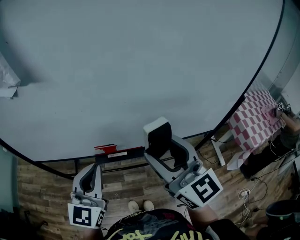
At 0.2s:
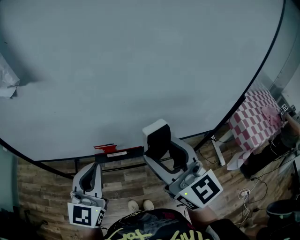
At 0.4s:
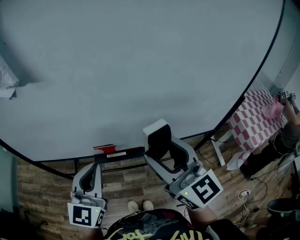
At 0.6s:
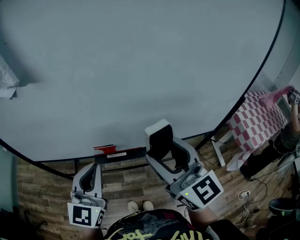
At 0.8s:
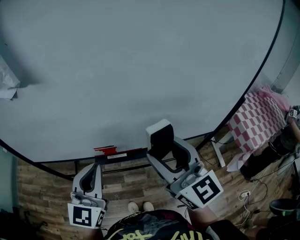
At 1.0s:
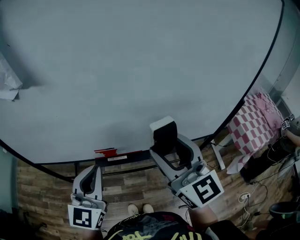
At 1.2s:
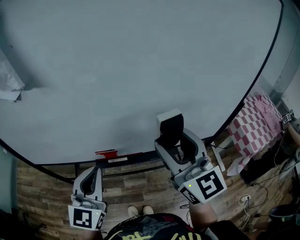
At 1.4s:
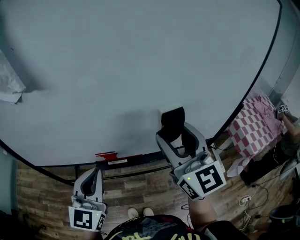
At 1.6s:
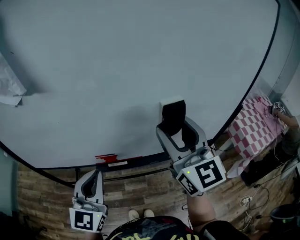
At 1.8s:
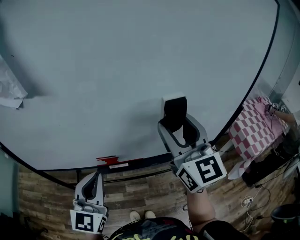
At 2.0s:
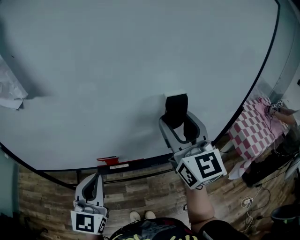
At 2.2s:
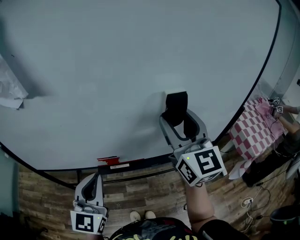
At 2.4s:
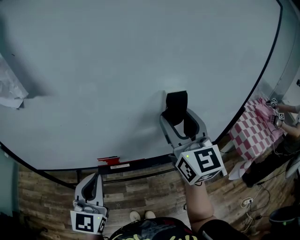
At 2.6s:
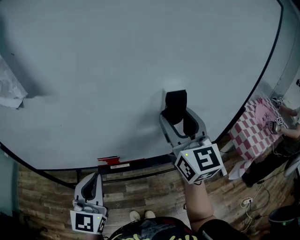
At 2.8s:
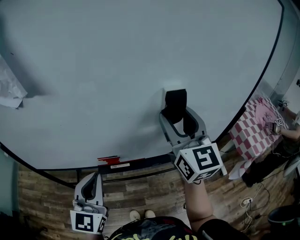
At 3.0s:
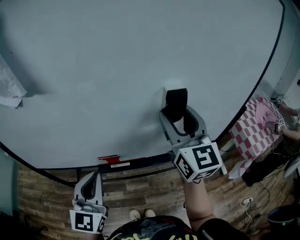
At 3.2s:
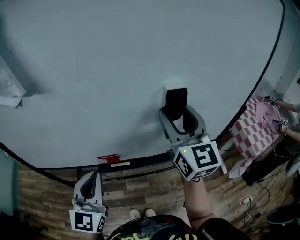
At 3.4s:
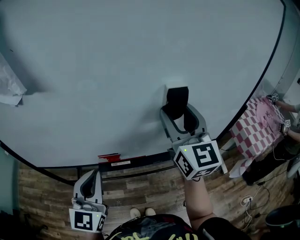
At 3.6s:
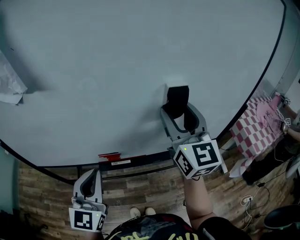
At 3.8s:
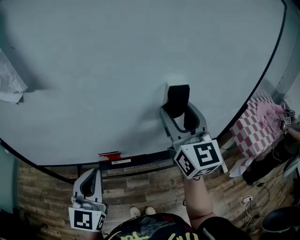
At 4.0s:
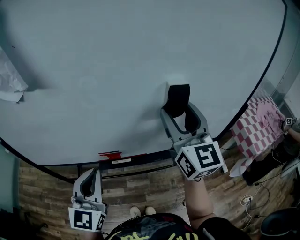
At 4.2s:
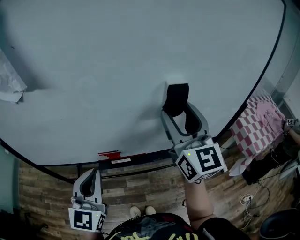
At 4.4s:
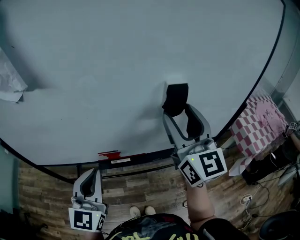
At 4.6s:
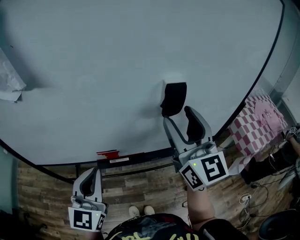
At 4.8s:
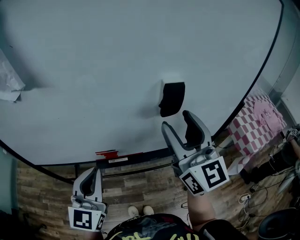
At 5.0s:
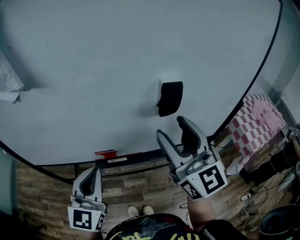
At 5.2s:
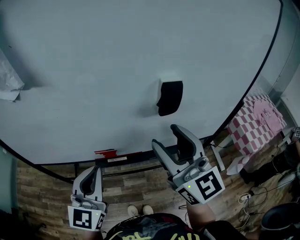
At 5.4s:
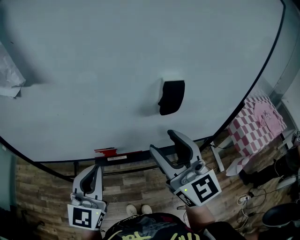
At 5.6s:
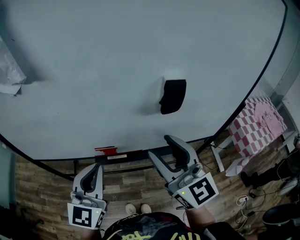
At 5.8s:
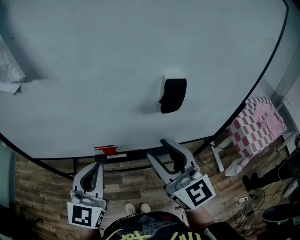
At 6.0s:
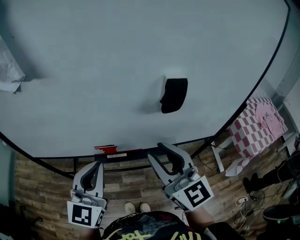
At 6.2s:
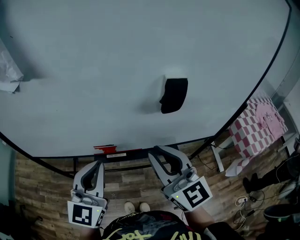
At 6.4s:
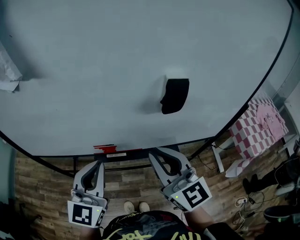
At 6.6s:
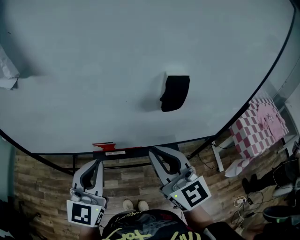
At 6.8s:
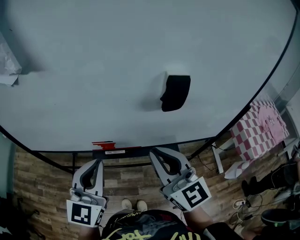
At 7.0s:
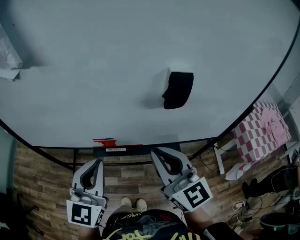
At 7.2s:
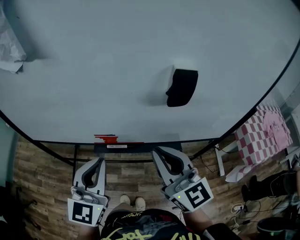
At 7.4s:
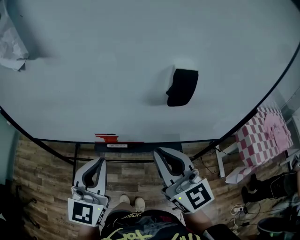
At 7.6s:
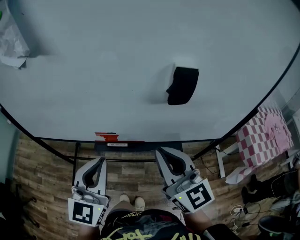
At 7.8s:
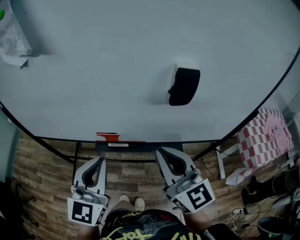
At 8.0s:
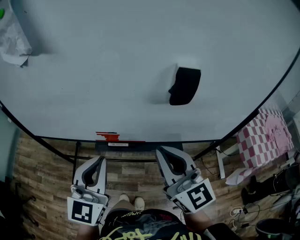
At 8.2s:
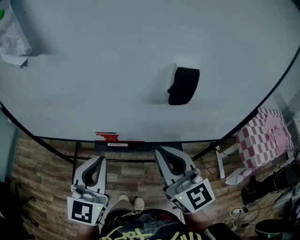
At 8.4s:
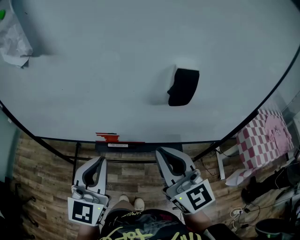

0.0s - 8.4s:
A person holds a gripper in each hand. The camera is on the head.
0.0s - 1.4s: The right gripper ends up roughly 5 cm from where it was.
1.4s - 2.8s: The right gripper is displaced forward by about 5 cm.
2.8s - 4.2s: The two grippers keep their place.
4.2s - 5.6s: The right gripper moves backward and downward, approximately 10 cm.
5.6s - 7.0s: The right gripper closes up.
7.0s - 8.4s: The grippers make only small movements.

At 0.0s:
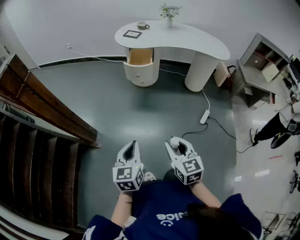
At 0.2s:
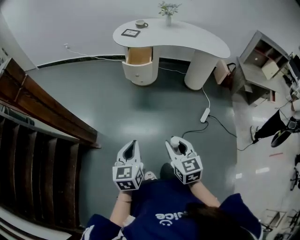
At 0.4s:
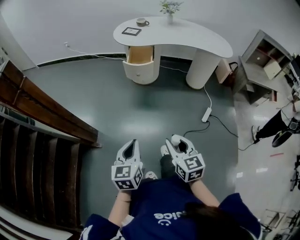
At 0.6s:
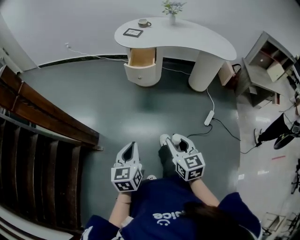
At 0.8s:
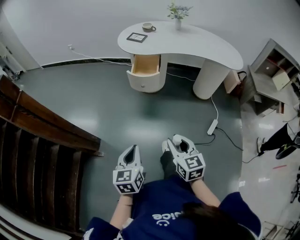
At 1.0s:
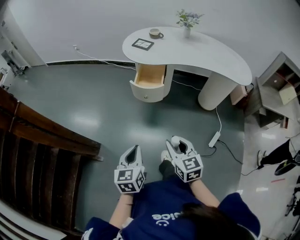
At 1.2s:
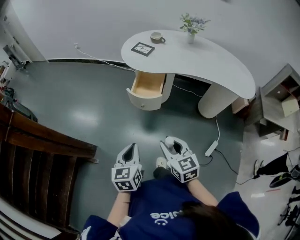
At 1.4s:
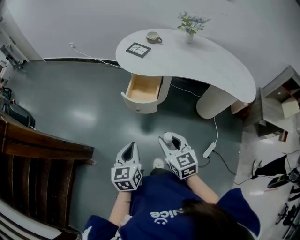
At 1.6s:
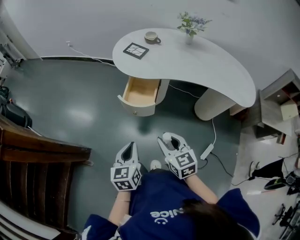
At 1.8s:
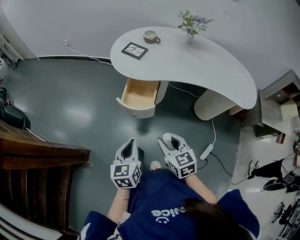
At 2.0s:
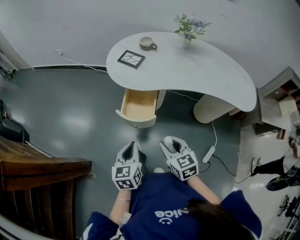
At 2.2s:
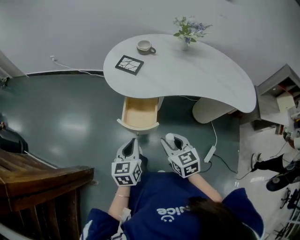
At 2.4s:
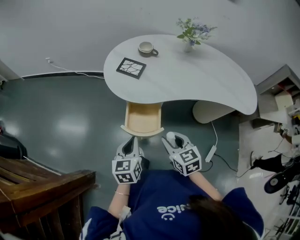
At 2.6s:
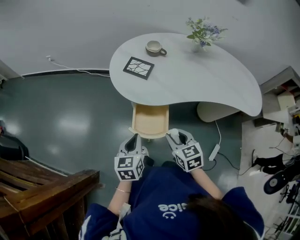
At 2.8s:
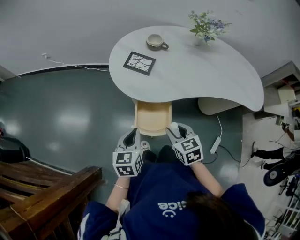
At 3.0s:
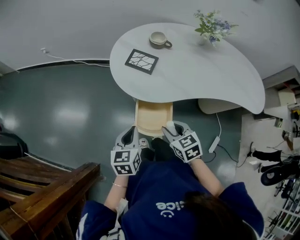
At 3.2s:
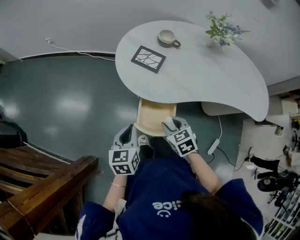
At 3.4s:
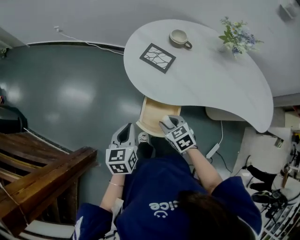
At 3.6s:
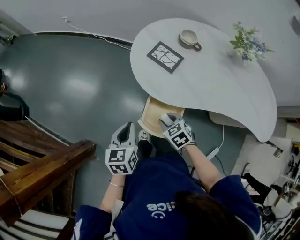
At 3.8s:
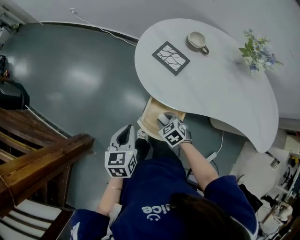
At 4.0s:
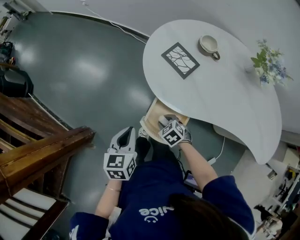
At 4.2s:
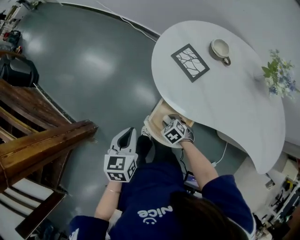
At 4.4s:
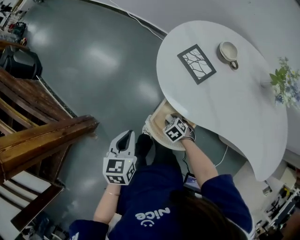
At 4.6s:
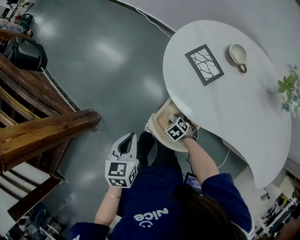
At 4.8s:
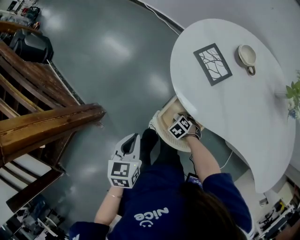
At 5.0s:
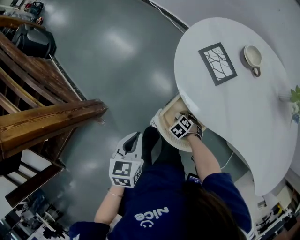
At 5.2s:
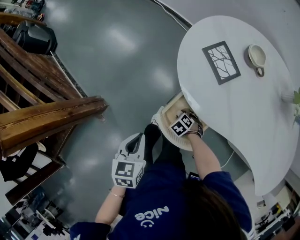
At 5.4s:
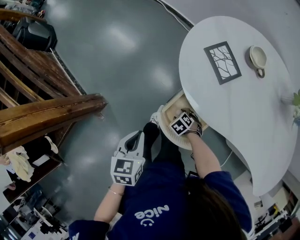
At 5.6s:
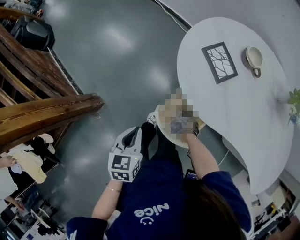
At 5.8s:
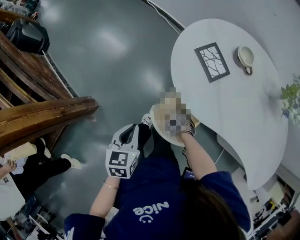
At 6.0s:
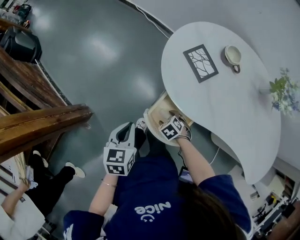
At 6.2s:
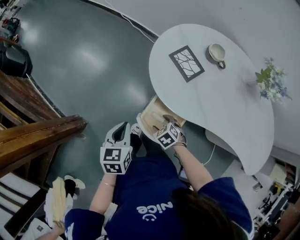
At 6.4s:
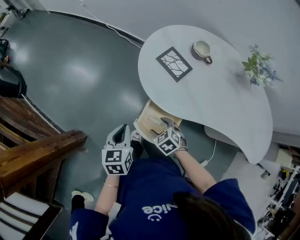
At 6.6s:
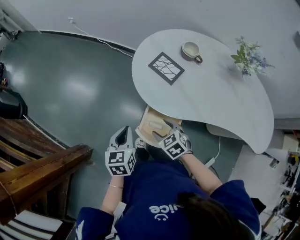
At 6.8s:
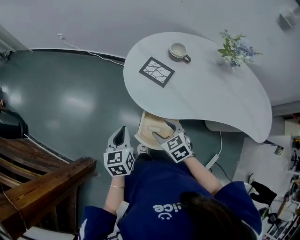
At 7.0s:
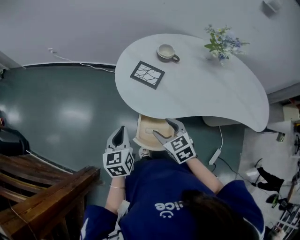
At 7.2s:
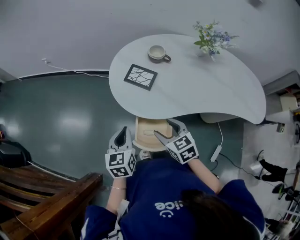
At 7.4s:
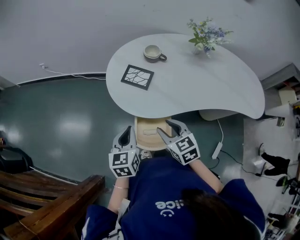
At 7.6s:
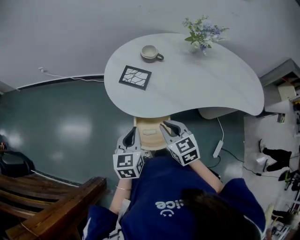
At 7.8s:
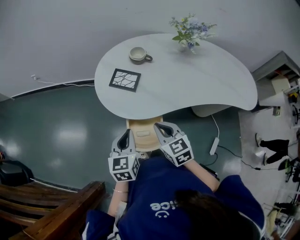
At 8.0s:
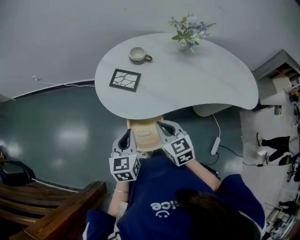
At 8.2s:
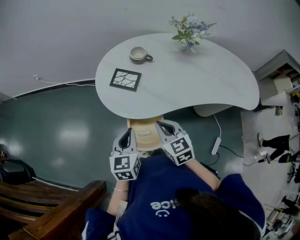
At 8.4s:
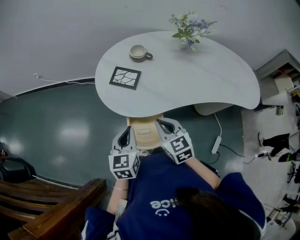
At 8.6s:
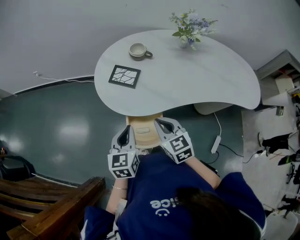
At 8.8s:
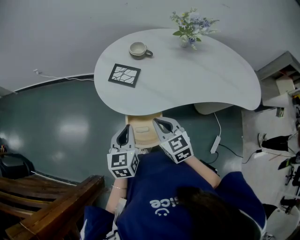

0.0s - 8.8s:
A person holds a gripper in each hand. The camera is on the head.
0.0s - 1.4s: Both grippers move forward, some 40 cm.
1.4s - 3.0s: Both grippers move forward, approximately 30 cm. The right gripper rotates approximately 20 degrees.
3.0s - 4.4s: The right gripper shifts about 25 cm downward, and swivels about 50 degrees. The left gripper shifts by approximately 5 cm, and rotates roughly 30 degrees.
4.4s - 5.8s: The right gripper opens up.
5.8s - 7.4s: The right gripper shifts some 30 cm upward, and points its fingers some 40 degrees further upward; the left gripper moves roughly 15 cm, and changes its angle by roughly 30 degrees.
7.4s - 8.8s: The left gripper moves to the right, approximately 5 cm, while the right gripper closes up.

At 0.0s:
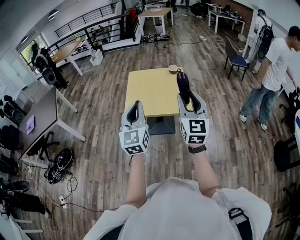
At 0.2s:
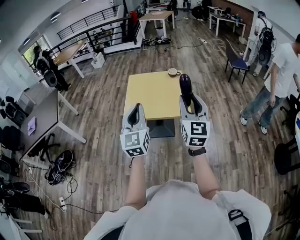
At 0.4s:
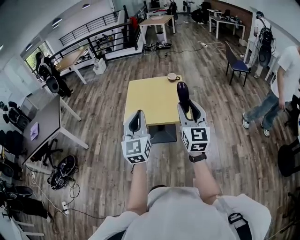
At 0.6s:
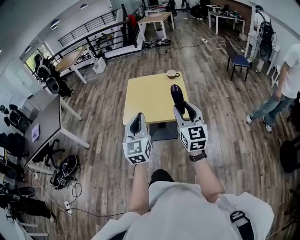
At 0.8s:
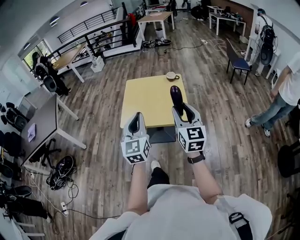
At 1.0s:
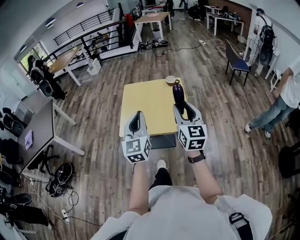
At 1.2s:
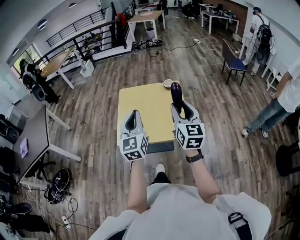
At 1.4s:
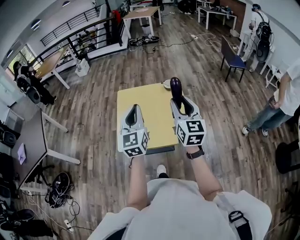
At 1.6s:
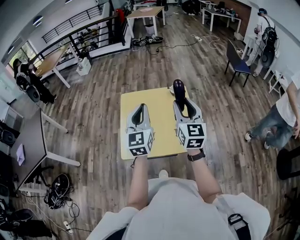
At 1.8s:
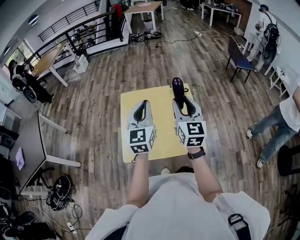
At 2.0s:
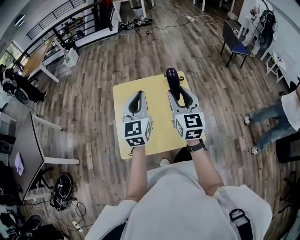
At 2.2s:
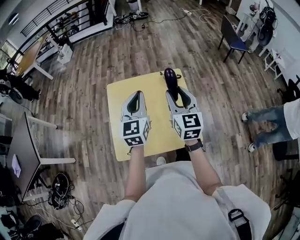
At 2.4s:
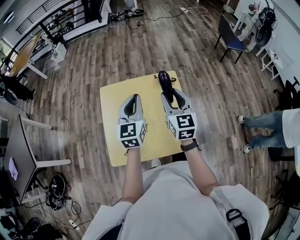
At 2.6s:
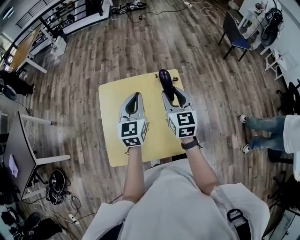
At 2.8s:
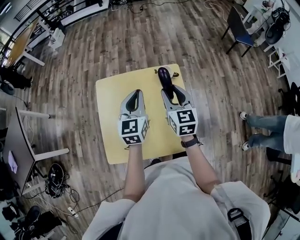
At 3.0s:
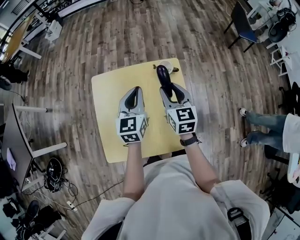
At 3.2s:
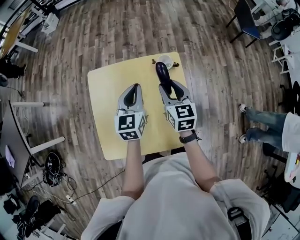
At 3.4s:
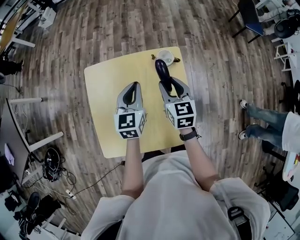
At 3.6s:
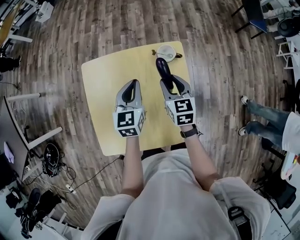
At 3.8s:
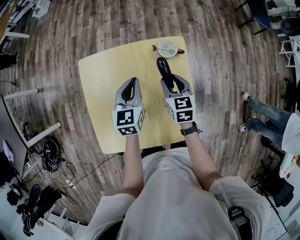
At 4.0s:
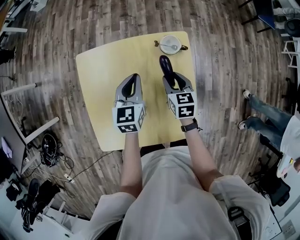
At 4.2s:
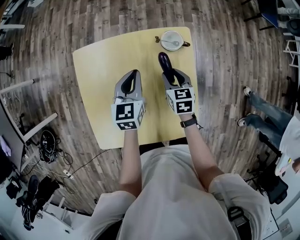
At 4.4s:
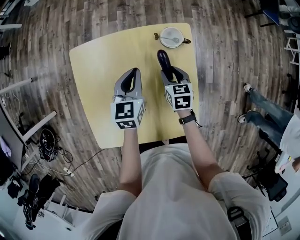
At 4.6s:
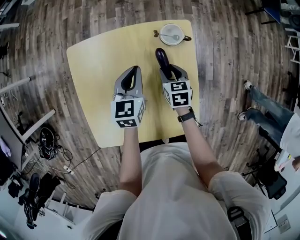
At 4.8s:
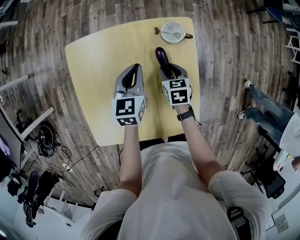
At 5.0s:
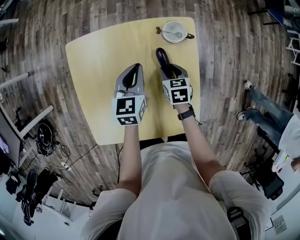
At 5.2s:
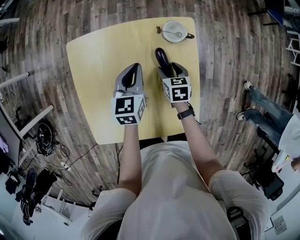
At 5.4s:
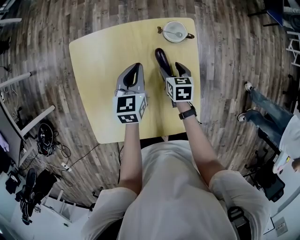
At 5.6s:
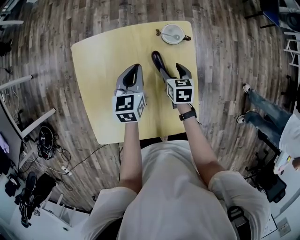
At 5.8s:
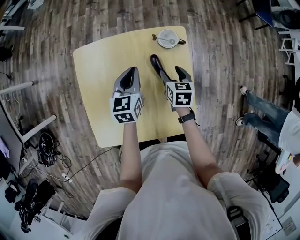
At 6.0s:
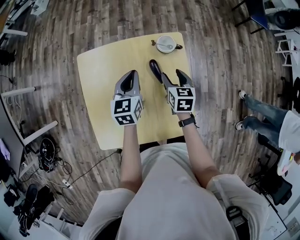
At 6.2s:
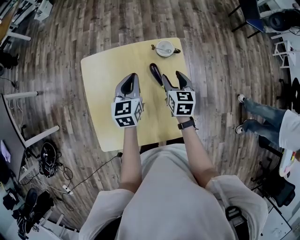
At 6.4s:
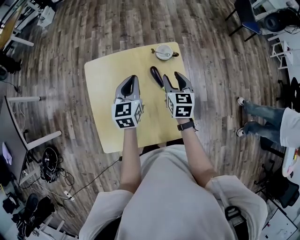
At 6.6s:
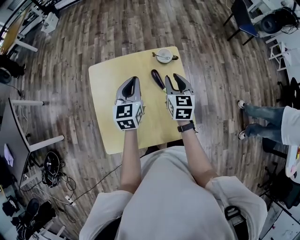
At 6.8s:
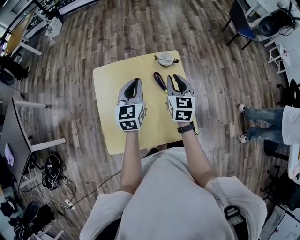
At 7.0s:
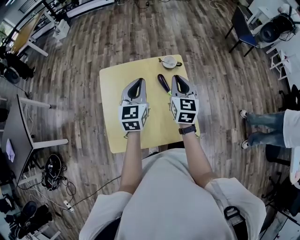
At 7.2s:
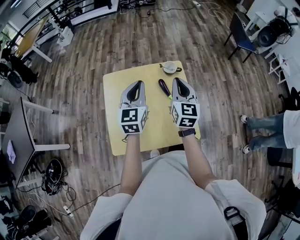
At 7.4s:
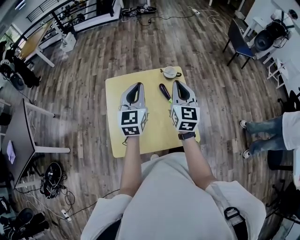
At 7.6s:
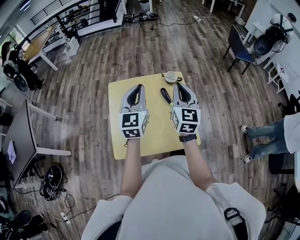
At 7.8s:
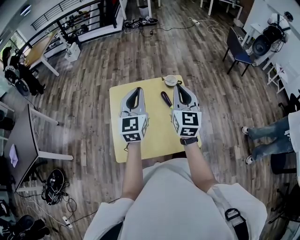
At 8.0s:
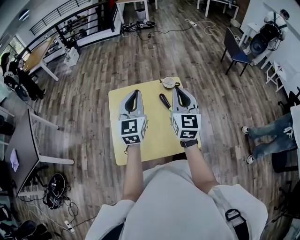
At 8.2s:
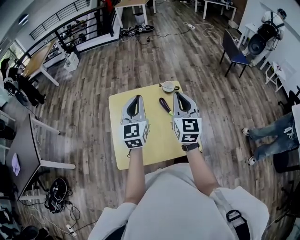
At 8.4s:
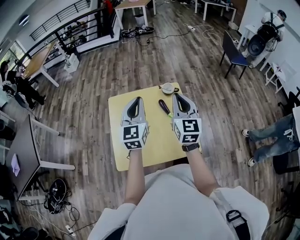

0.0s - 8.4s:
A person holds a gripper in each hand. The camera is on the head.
0.0s - 1.4s: The grippers both shift forward by some 25 cm.
1.4s - 2.8s: The two grippers go approximately 30 cm forward and downward.
2.8s - 4.2s: Both grippers travel together downward, roughly 20 cm. The right gripper turns by approximately 30 degrees.
4.2s - 5.6s: The right gripper opens its fingers.
5.6s - 7.0s: The right gripper heads upward, covering roughly 25 cm, tilts its fingers some 30 degrees upward, and closes up; the left gripper heads upward and backward, covering roughly 20 cm, and changes its angle by about 20 degrees.
7.0s - 8.4s: The two grippers go about 15 cm upward and backward.
